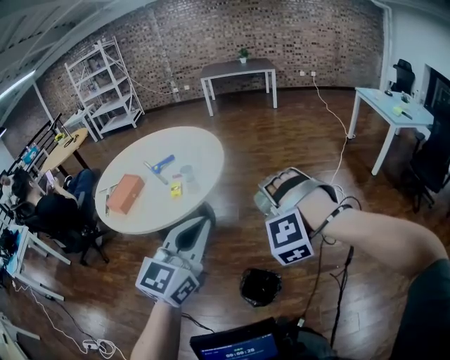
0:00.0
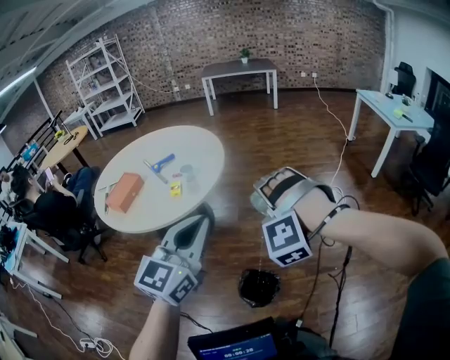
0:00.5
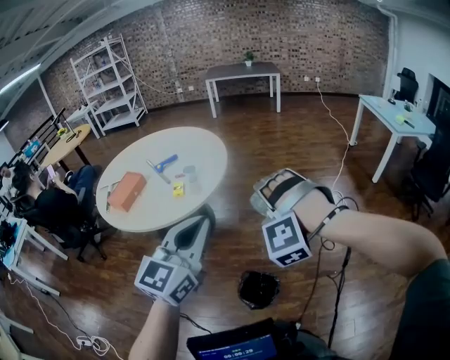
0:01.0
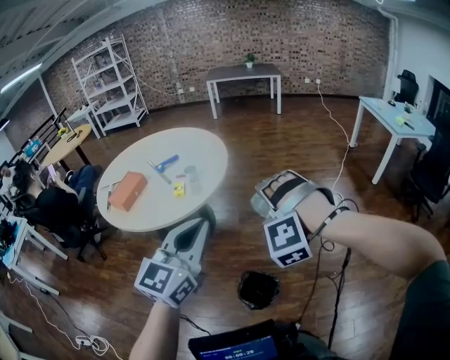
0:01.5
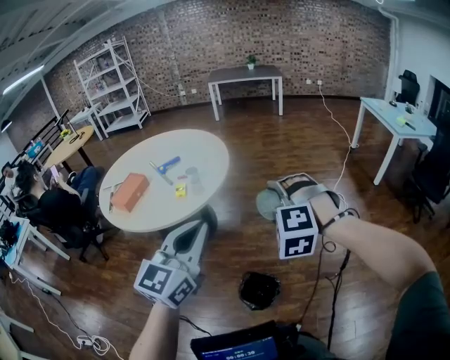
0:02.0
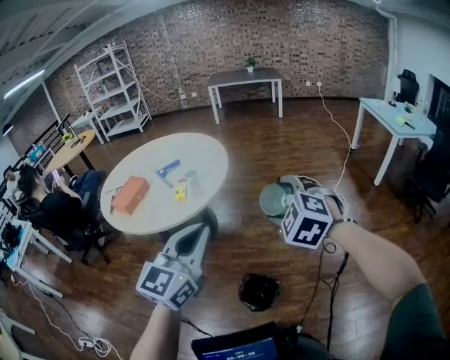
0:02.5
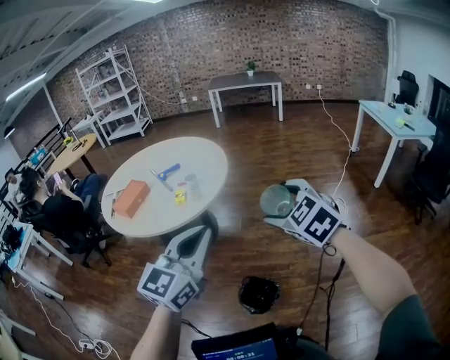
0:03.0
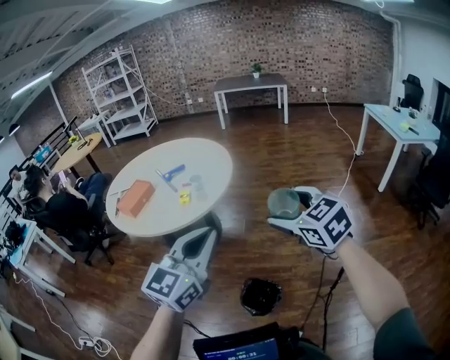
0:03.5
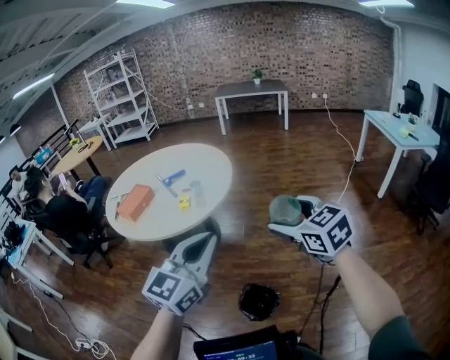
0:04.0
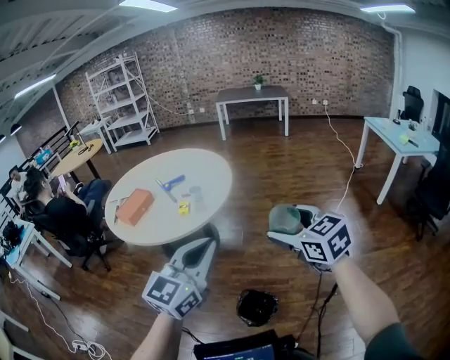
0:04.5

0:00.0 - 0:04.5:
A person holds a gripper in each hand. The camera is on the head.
0:00.0 - 0:02.0: The right gripper changes its angle by some 20 degrees.
0:02.0 - 0:04.5: The right gripper ends up some 5 cm from where it was, and twists about 60 degrees clockwise, seen from behind.

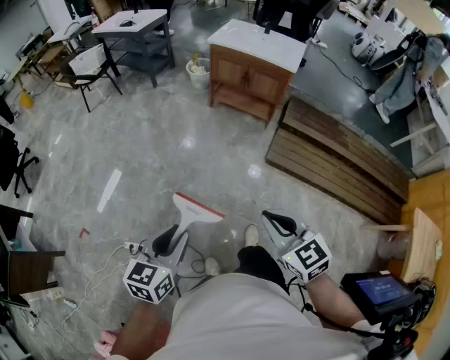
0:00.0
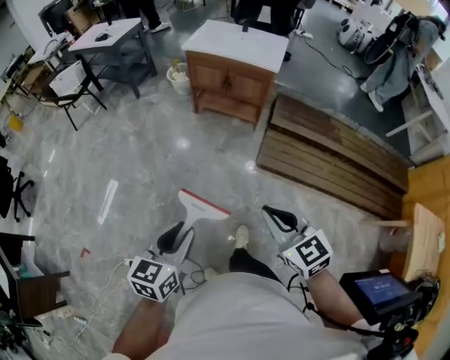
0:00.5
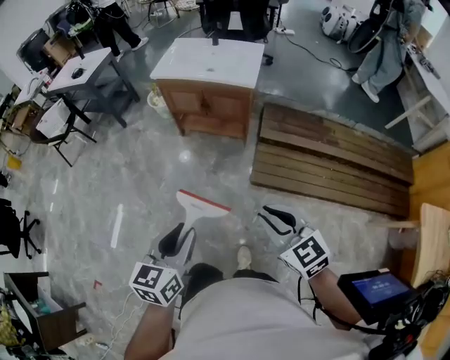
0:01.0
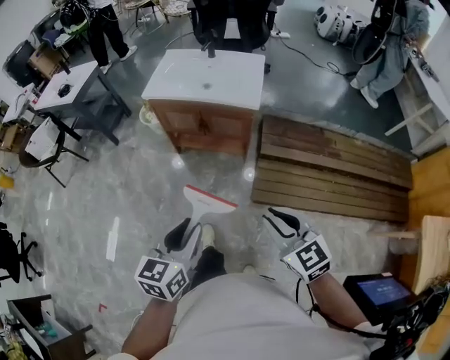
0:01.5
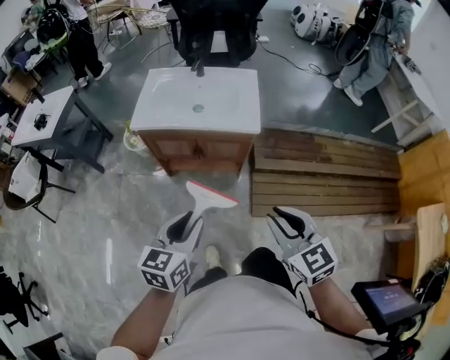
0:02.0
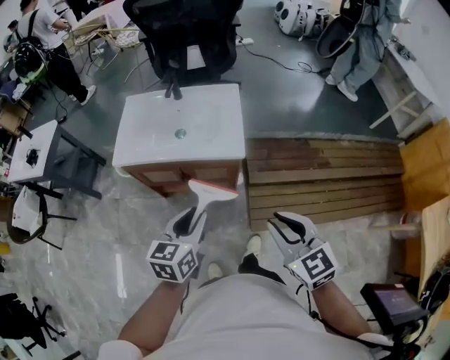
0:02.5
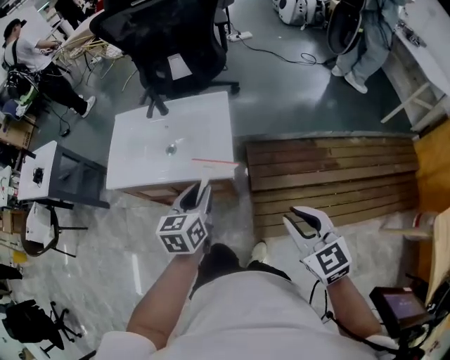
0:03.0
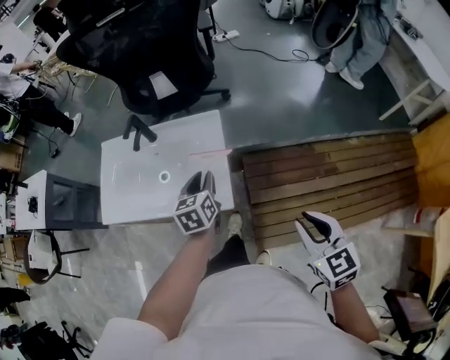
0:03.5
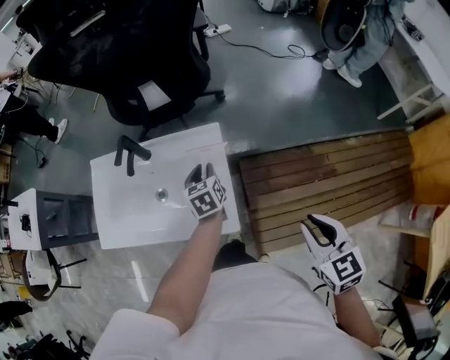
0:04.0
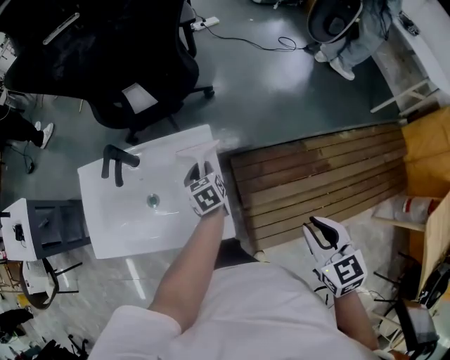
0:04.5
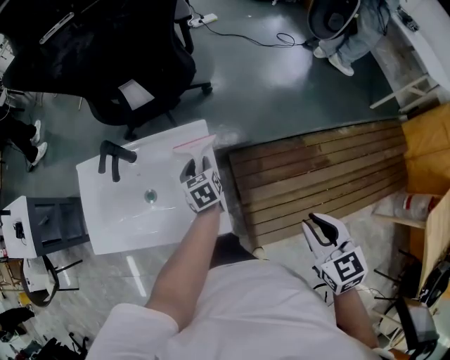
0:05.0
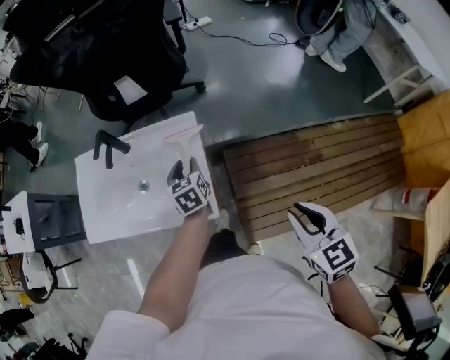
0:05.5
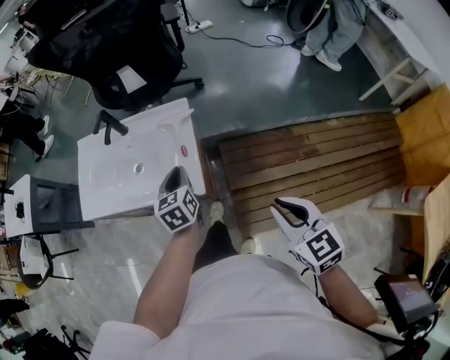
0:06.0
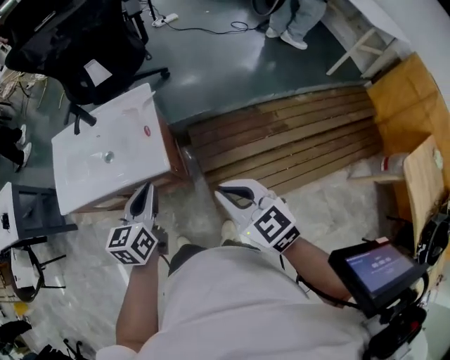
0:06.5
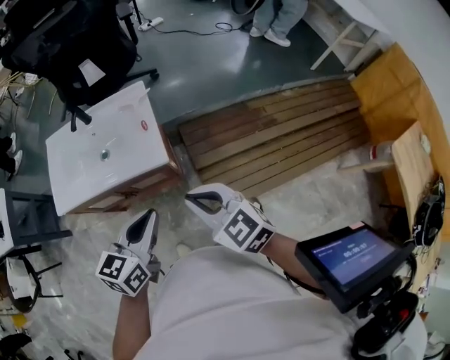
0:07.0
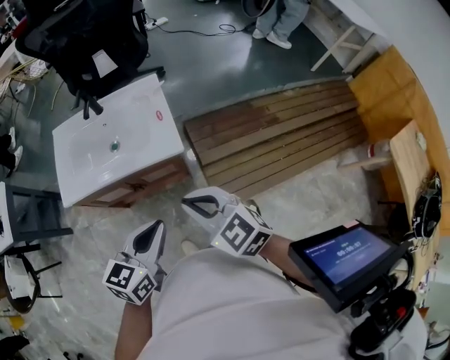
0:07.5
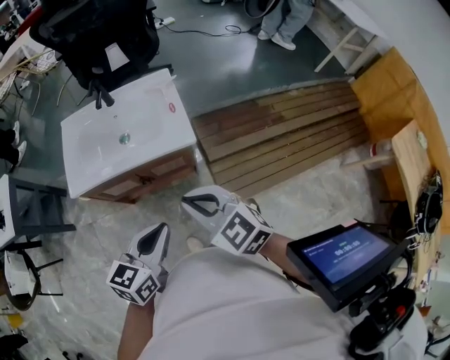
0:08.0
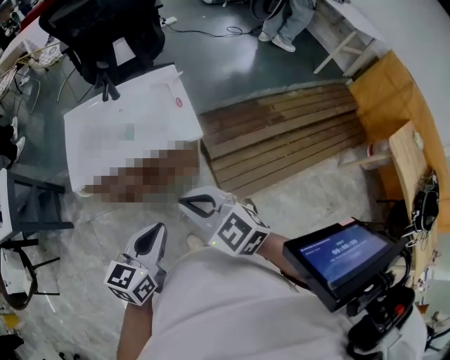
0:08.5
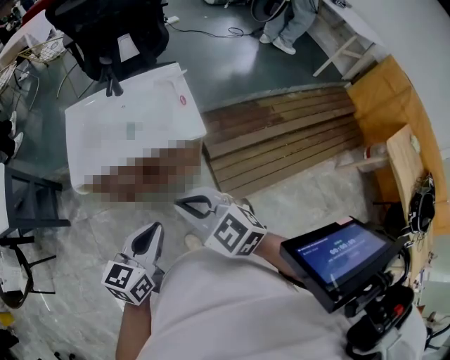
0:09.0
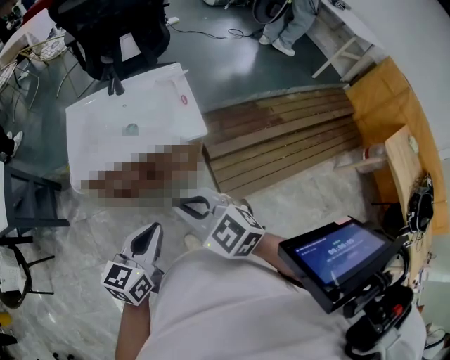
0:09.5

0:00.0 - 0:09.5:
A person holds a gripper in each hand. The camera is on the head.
0:00.0 - 0:02.0: The pair of grippers is taken forward, approximately 60 cm. The left gripper rotates some 20 degrees. Meanwhile the right gripper changes its angle by approximately 20 degrees.
0:02.0 - 0:04.0: Both grippers are carried forward and to the right, roughly 60 cm. The right gripper rotates some 20 degrees, while the left gripper turns by some 20 degrees.
0:04.0 - 0:05.5: There are only small adjustments of the grippers.
0:05.5 - 0:07.5: The right gripper heads to the left and backward, covering roughly 30 cm, and changes its angle by some 20 degrees, while the left gripper shifts about 40 cm backward, swivels some 40 degrees, and closes its fingers.
0:07.5 - 0:09.5: The grippers both shift to the left by some 15 cm.

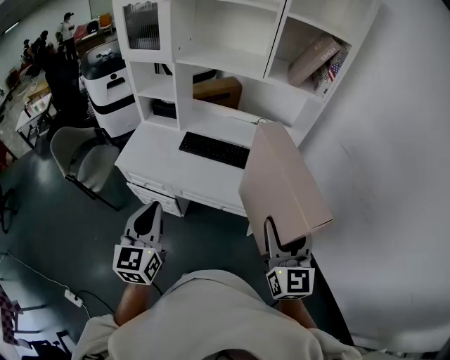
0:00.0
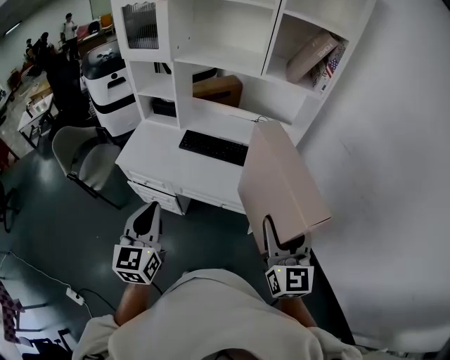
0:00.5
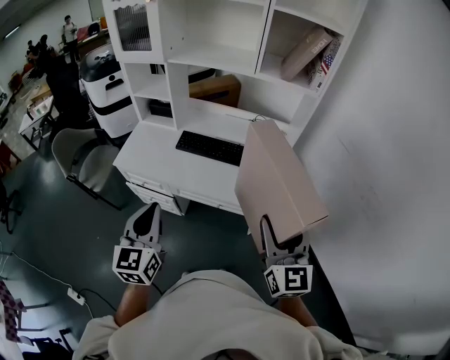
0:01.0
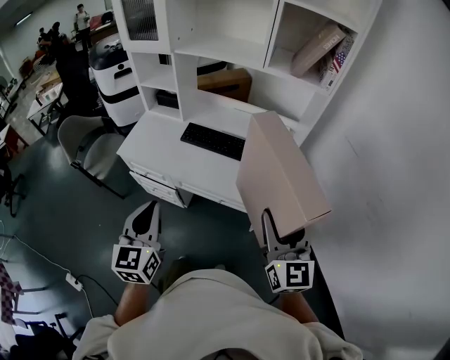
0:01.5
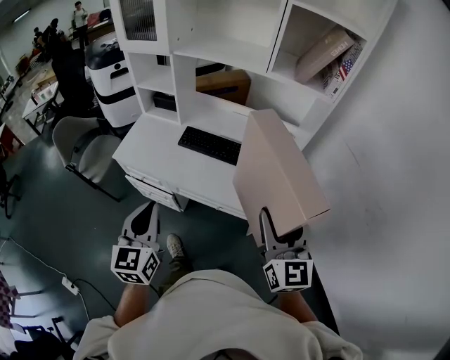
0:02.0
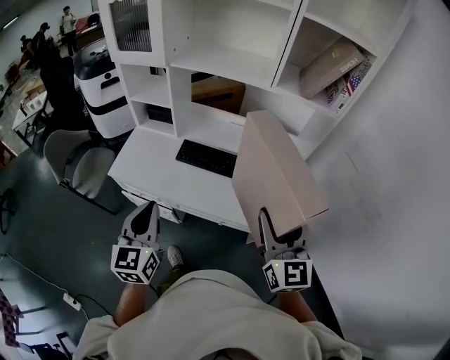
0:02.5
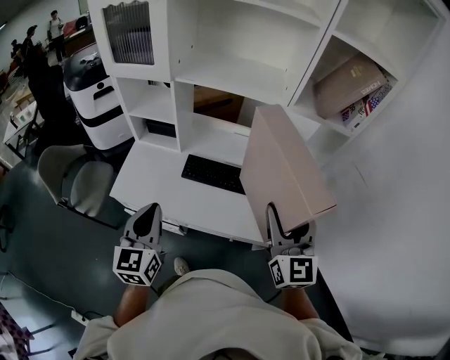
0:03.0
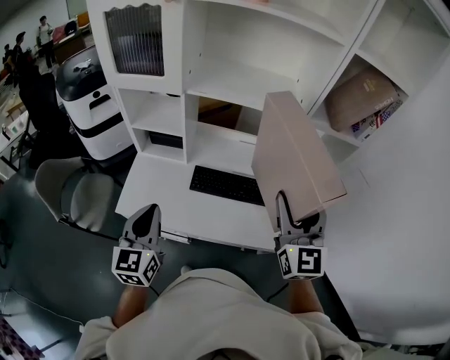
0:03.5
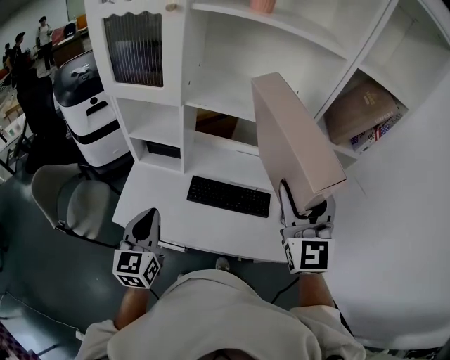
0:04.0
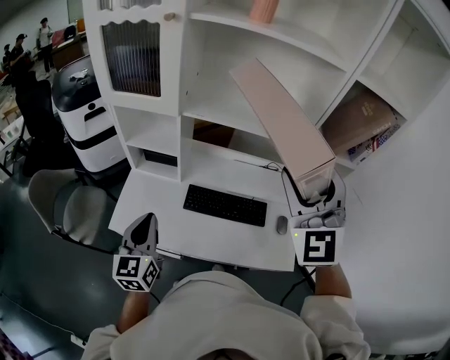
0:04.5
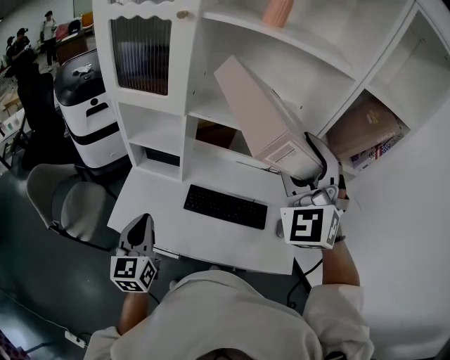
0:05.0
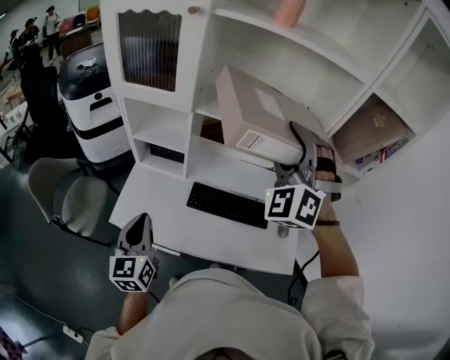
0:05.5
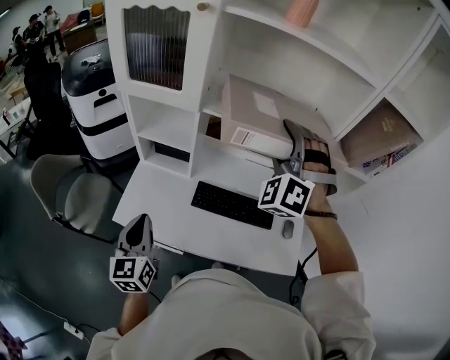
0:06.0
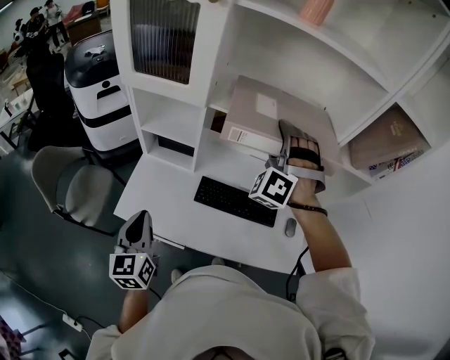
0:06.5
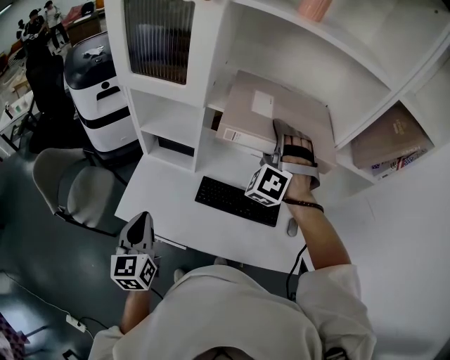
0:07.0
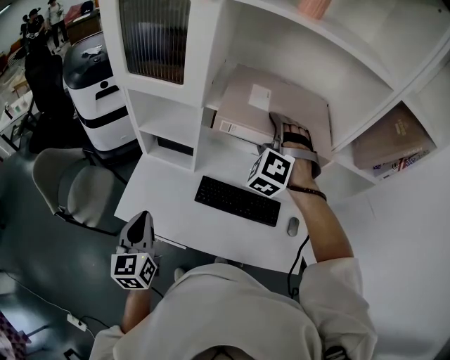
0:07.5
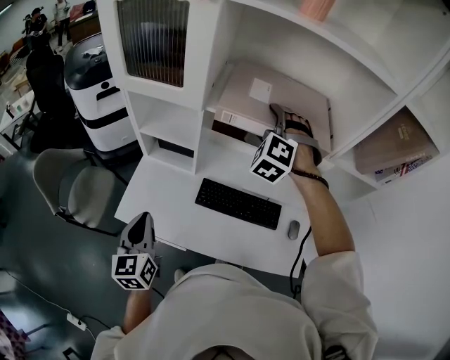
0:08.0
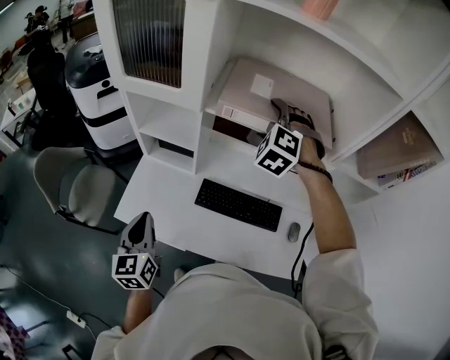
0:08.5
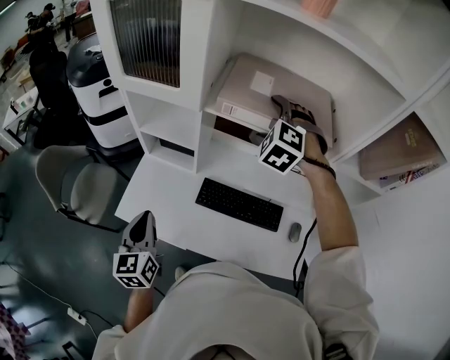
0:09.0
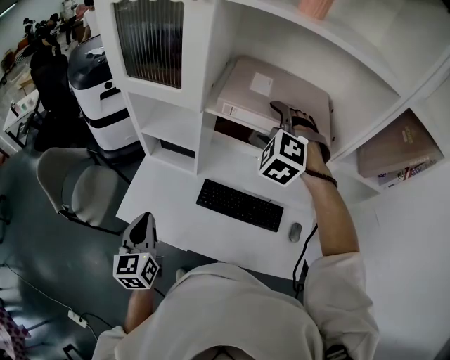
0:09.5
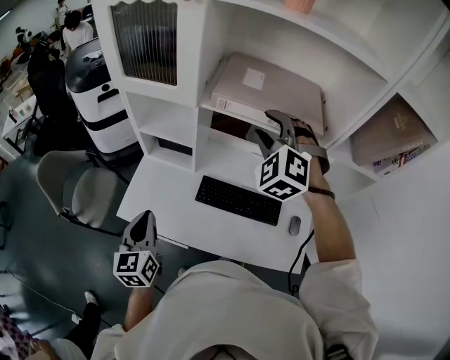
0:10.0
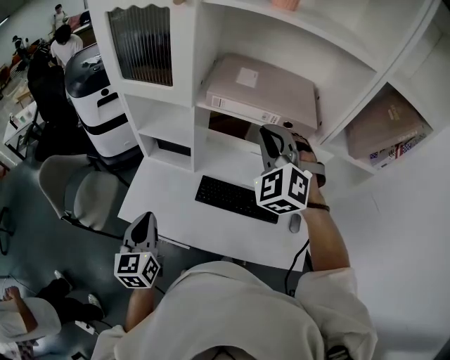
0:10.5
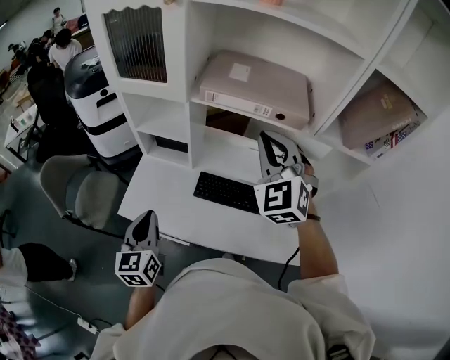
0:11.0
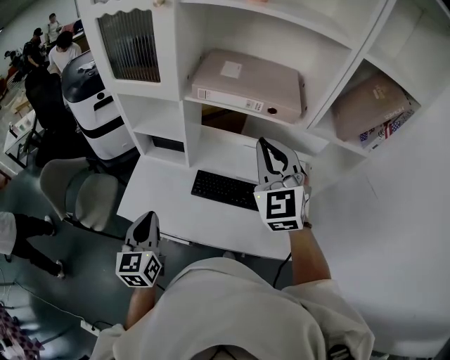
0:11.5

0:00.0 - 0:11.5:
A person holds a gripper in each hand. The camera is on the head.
0:00.0 - 0:02.0: The right gripper goes roughly 5 cm forward. The left gripper moves roughly 5 cm.
0:02.0 - 0:04.0: The grippers both shift forward and to the left by roughly 35 cm. The right gripper swivels roughly 30 degrees.
0:04.0 - 0:06.0: The right gripper heads forward and to the left, covering roughly 20 cm, and twists approximately 60 degrees counterclockwise, seen from behind, while the left gripper heads to the left, covering some 5 cm.
0:06.0 - 0:07.5: The right gripper heads downward and forward, covering approximately 10 cm.
0:07.5 - 0:09.5: The grippers stay close to where they were, moving slightly.
0:09.5 - 0:11.5: The left gripper shifts roughly 5 cm backward. The right gripper travels backward by some 20 cm, turns by about 50 degrees, and closes its fingers.

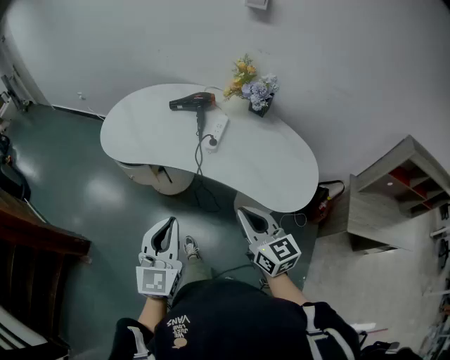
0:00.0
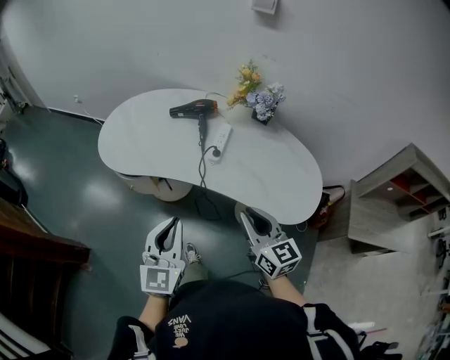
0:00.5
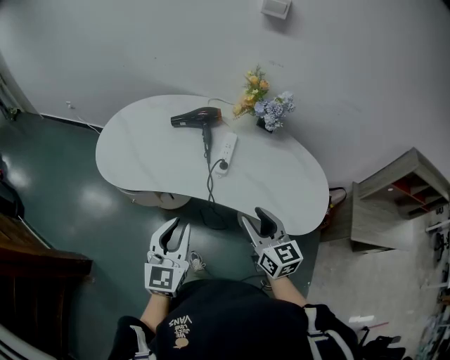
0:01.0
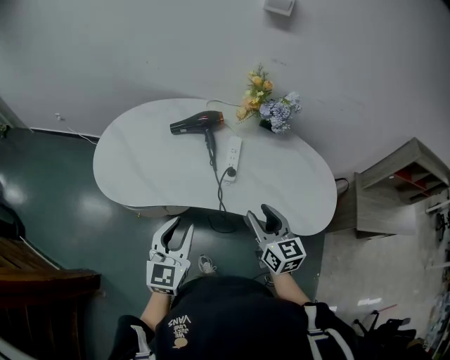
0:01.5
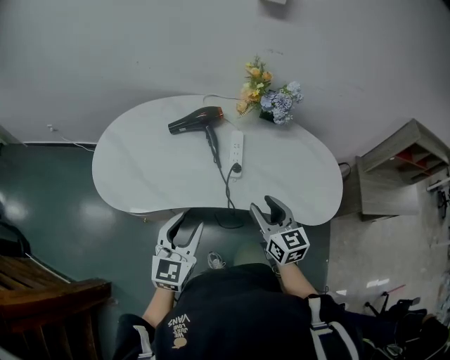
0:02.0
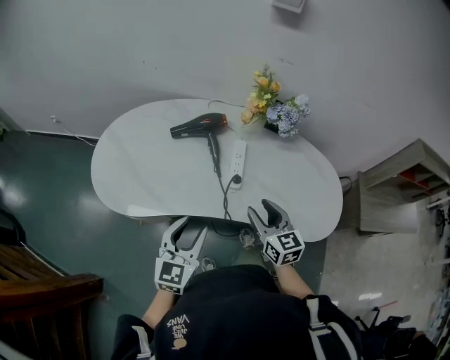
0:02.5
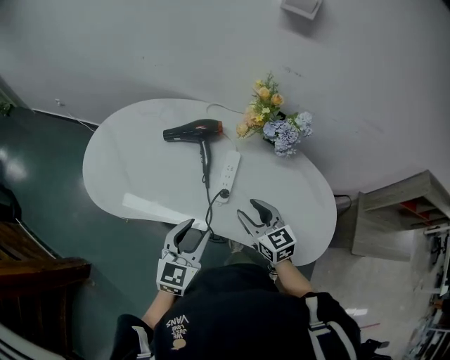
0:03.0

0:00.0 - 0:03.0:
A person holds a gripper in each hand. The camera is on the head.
0:00.0 - 0:01.5: The right gripper is displaced forward by roughly 20 cm, and opens up. Meanwhile the left gripper travels forward and to the left by some 25 cm.
0:01.5 - 0:03.0: The right gripper moves forward and downward, roughly 15 cm, and turns by approximately 20 degrees; the left gripper heads forward and to the right, covering roughly 15 cm.
